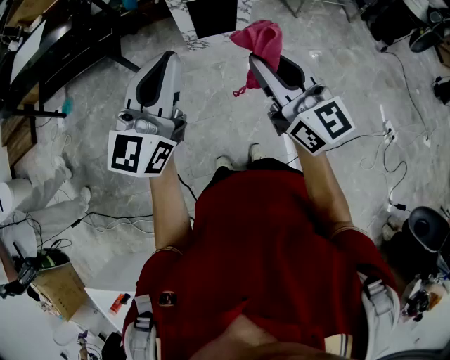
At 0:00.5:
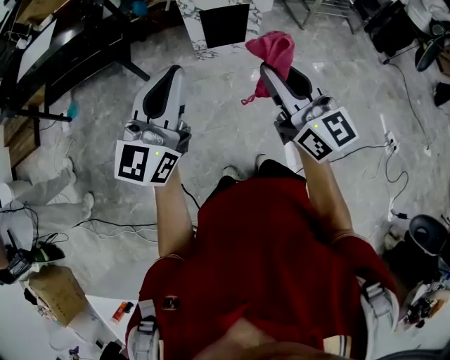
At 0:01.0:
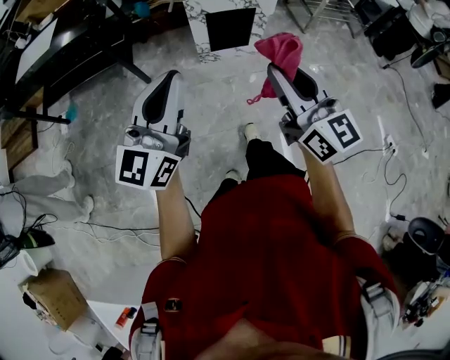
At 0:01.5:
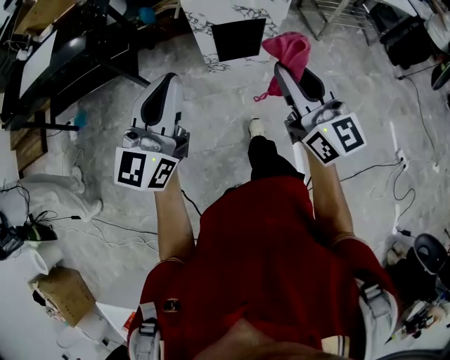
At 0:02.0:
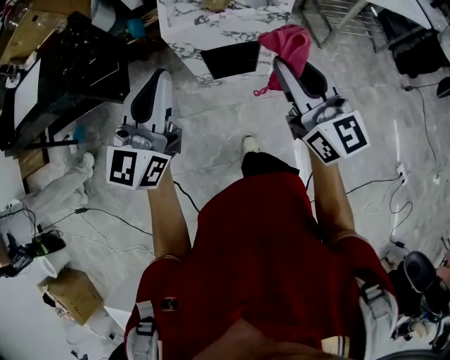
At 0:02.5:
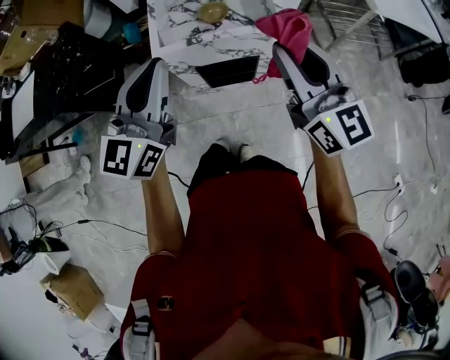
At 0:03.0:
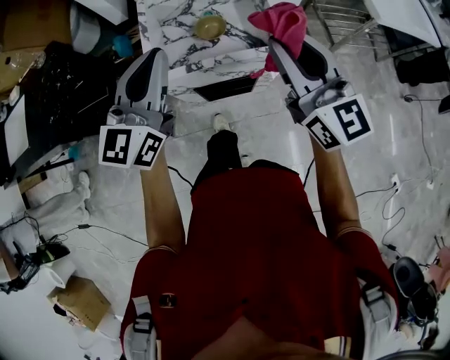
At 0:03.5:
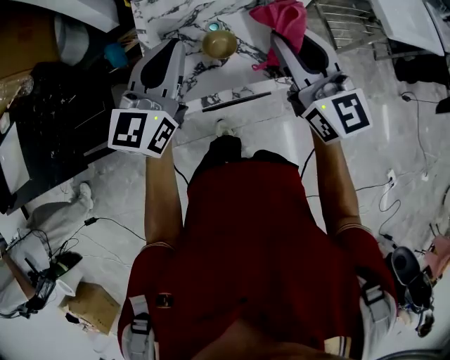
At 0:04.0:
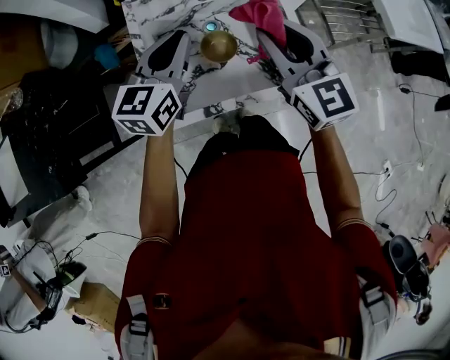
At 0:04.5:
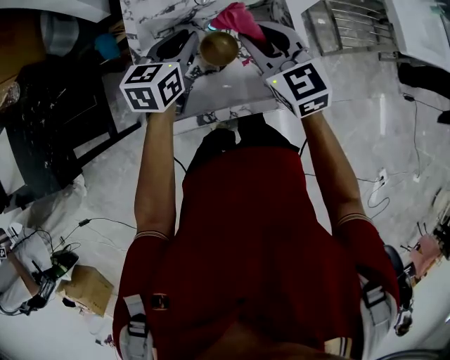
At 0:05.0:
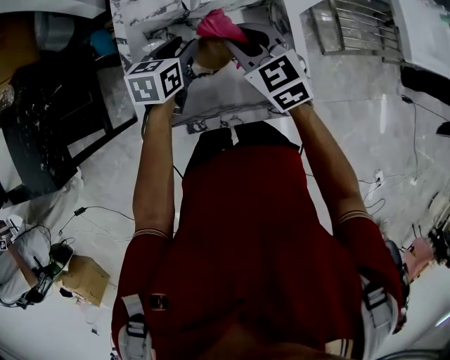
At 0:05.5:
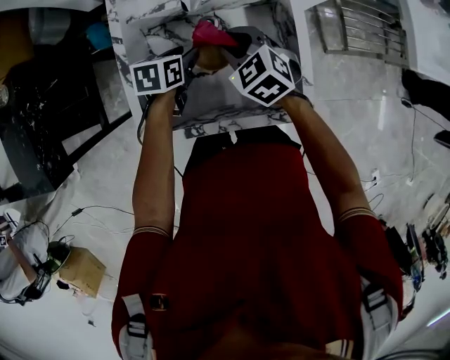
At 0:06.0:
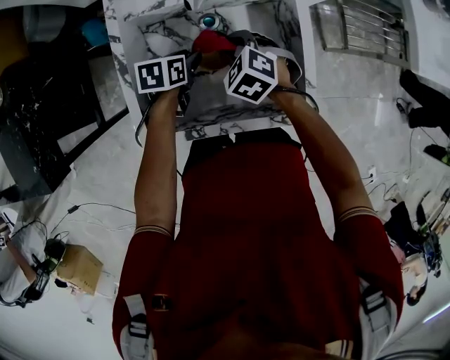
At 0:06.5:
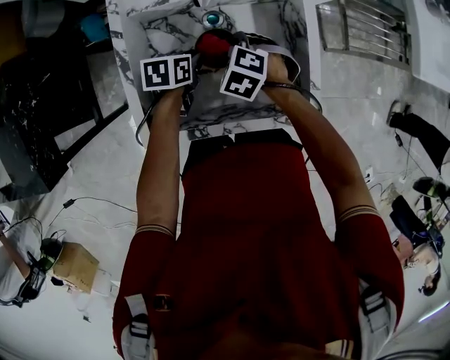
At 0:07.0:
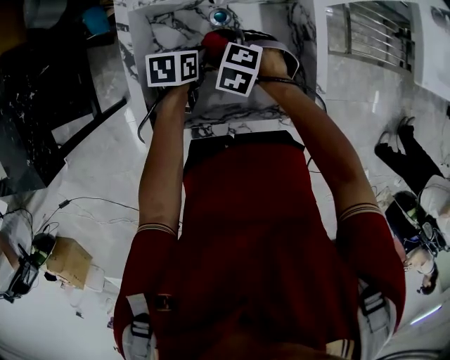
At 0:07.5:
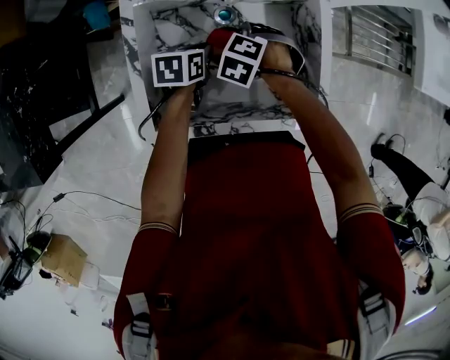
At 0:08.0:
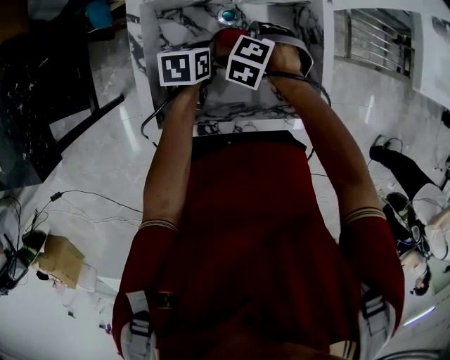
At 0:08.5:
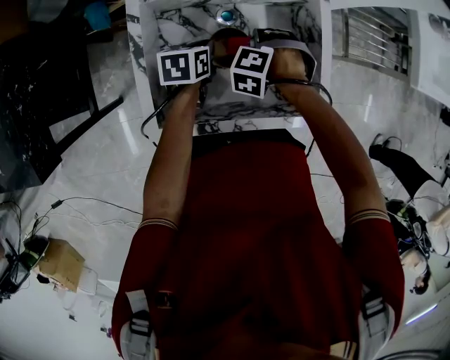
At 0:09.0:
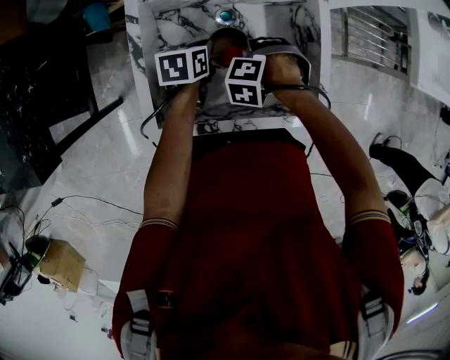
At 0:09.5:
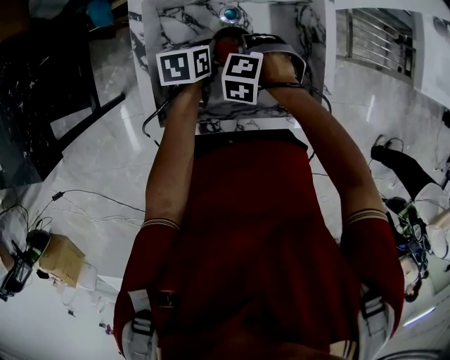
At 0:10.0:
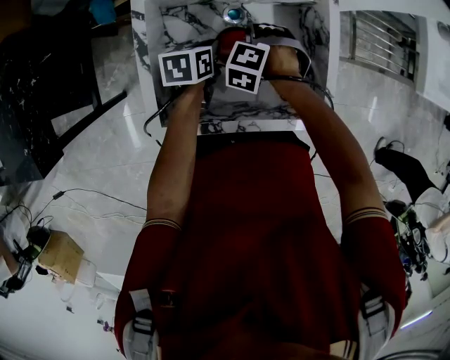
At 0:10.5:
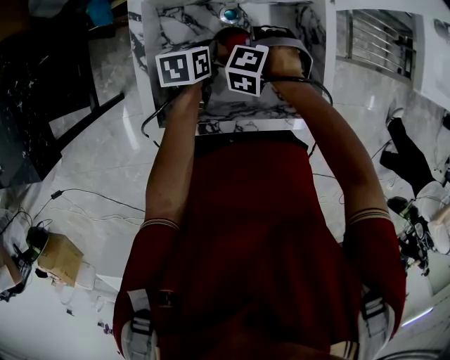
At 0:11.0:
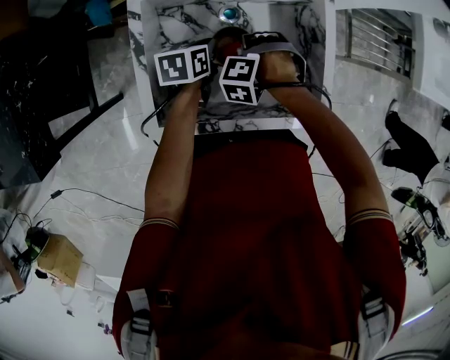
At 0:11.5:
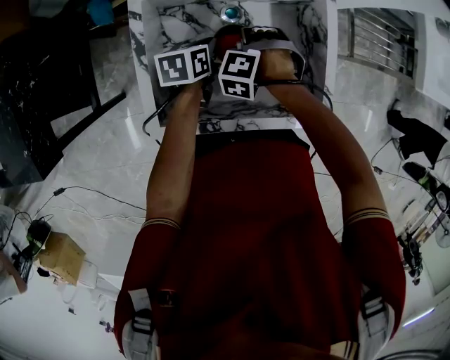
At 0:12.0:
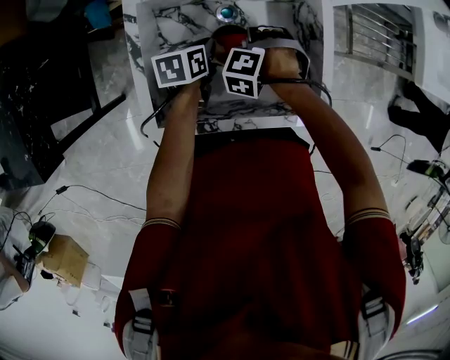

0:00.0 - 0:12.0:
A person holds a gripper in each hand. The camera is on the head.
0:00.0 - 0:02.0: The grippers both shift forward by roughly 35 cm.
0:02.0 - 0:04.0: The two grippers travel together, forward, some 50 cm. The right gripper turns by about 20 degrees. The left gripper swivels about 20 degrees.
0:04.0 - 0:06.0: The grippers both shift downward by about 25 cm. The right gripper angles its fingers downward, by roughly 50 degrees; the left gripper angles its fingers downward, by about 40 degrees, and opens its fingers.
0:06.0 - 0:08.0: The right gripper turns by approximately 30 degrees. The left gripper closes its fingers.
0:10.0 - 0:12.0: The grippers stay close to where they were, moving slightly.

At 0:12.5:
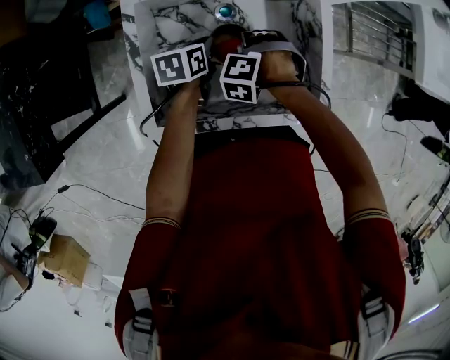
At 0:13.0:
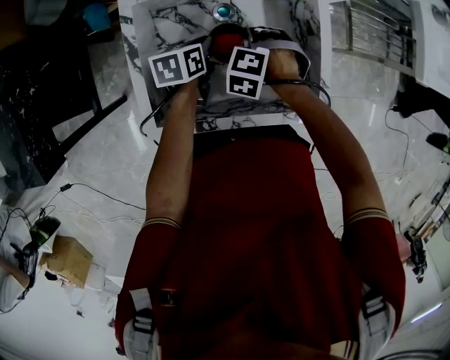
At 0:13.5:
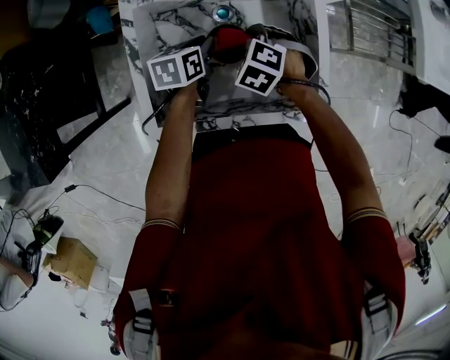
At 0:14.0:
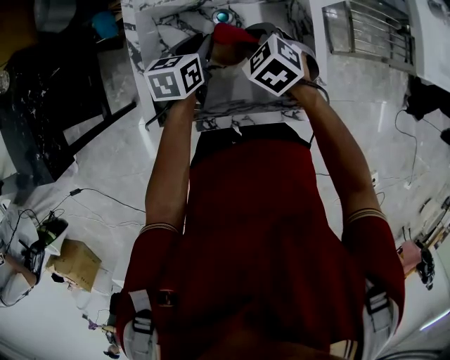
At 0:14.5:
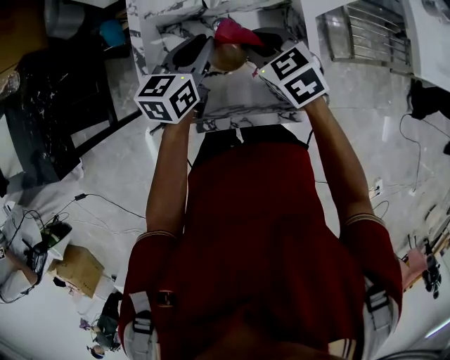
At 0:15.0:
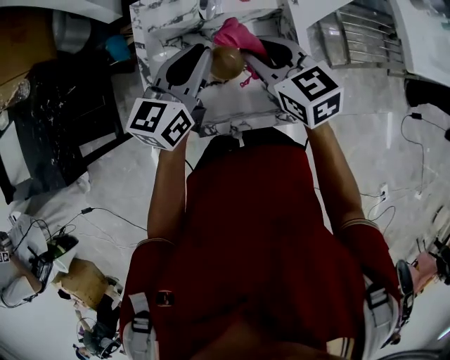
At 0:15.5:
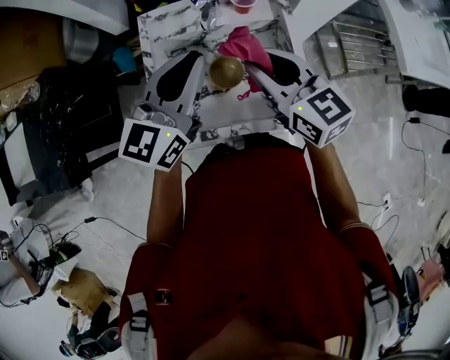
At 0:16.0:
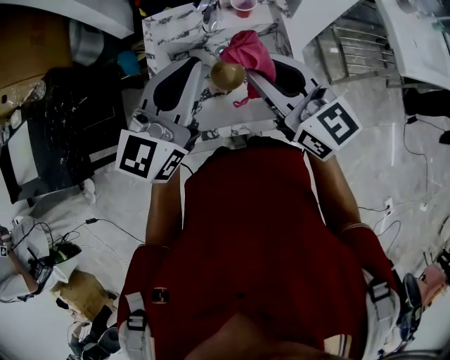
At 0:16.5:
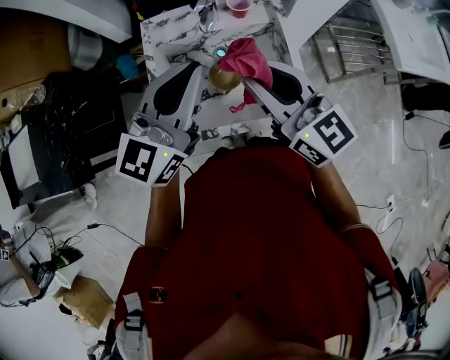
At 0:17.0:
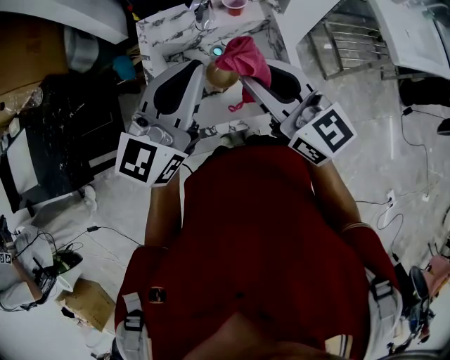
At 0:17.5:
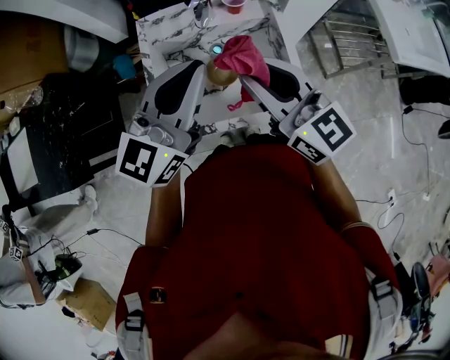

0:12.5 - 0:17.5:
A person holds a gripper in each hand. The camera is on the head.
0:12.5 - 0:15.0: Both grippers move upward, approximately 25 cm. The left gripper points its fingers about 40 degrees further upward, while the right gripper tilts its fingers about 50 degrees upward.
0:15.0 - 0:17.5: Both grippers move upward and backward, some 15 cm. The right gripper swivels roughly 30 degrees, while the left gripper rotates roughly 20 degrees.

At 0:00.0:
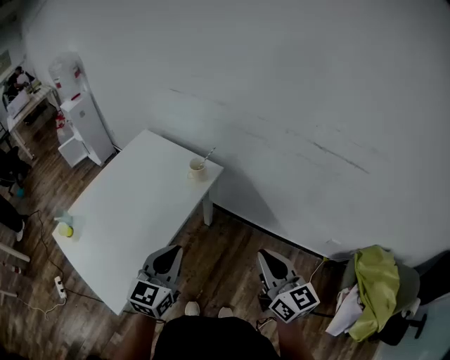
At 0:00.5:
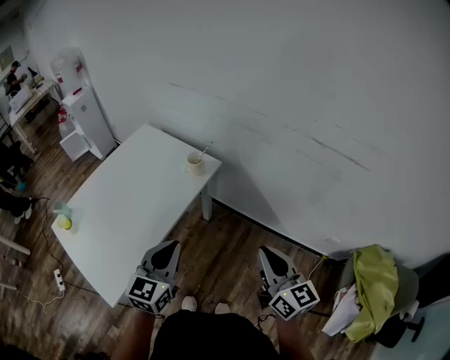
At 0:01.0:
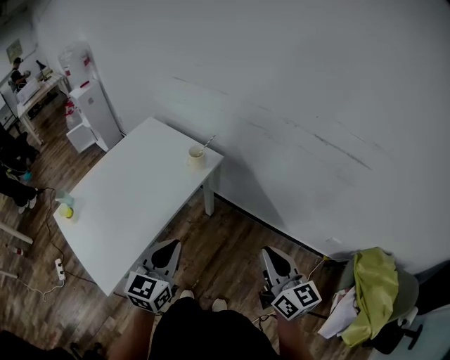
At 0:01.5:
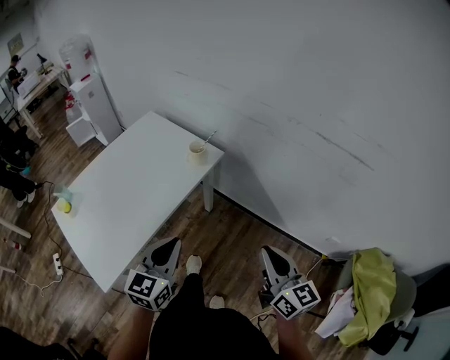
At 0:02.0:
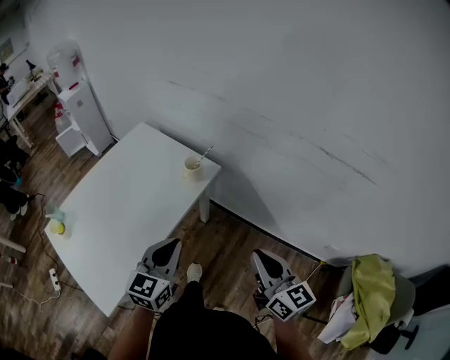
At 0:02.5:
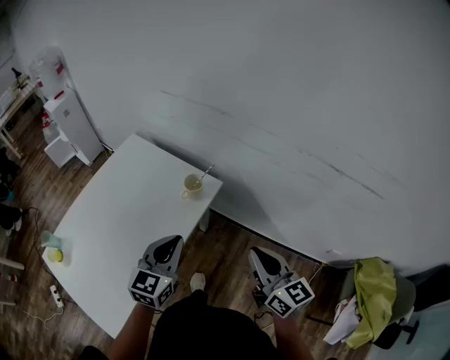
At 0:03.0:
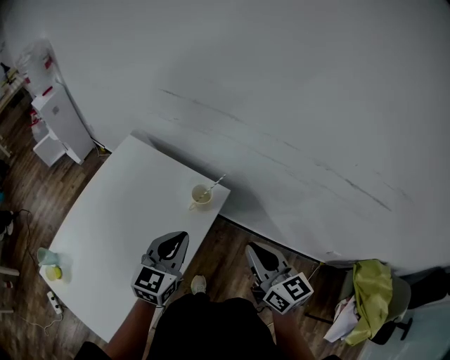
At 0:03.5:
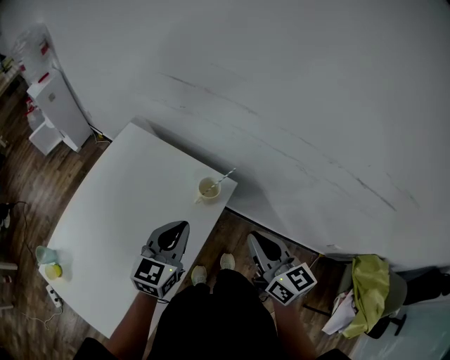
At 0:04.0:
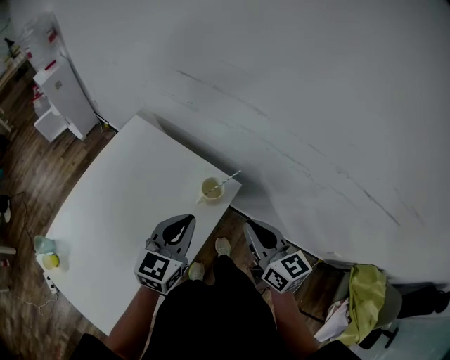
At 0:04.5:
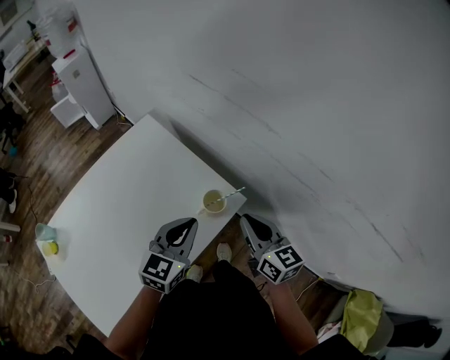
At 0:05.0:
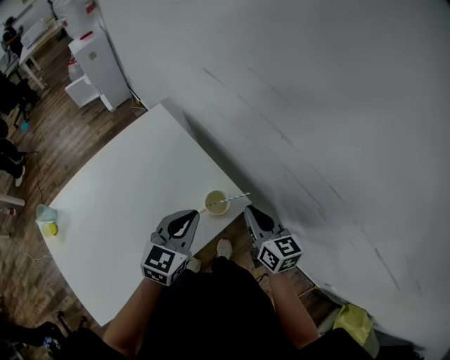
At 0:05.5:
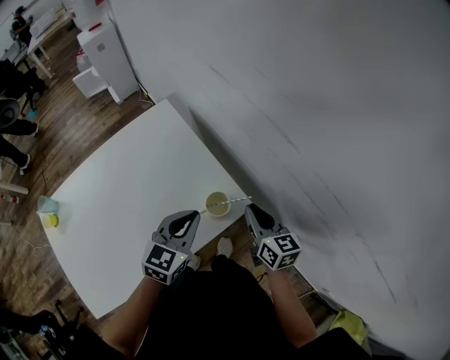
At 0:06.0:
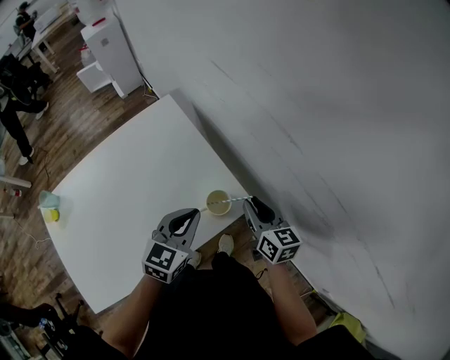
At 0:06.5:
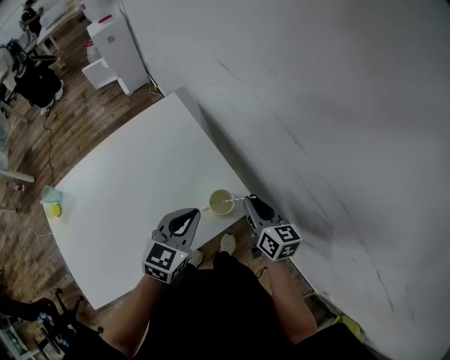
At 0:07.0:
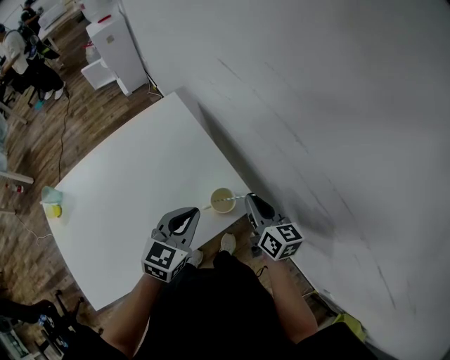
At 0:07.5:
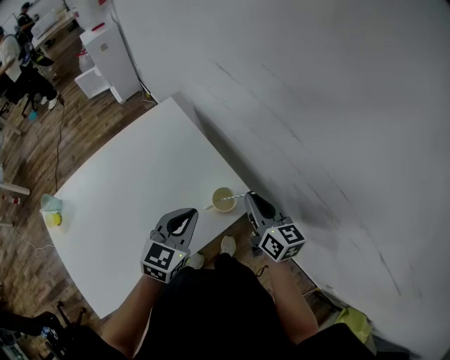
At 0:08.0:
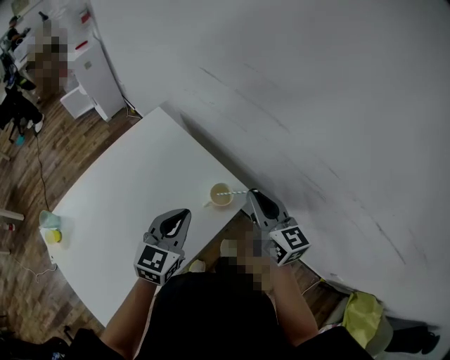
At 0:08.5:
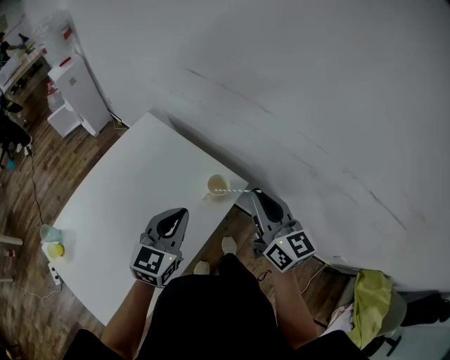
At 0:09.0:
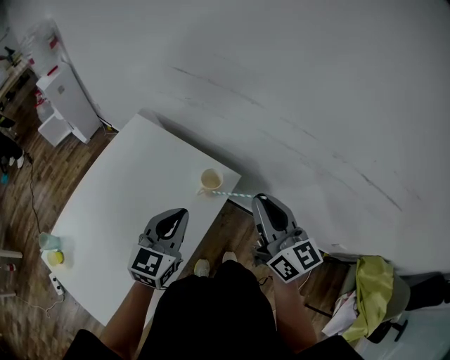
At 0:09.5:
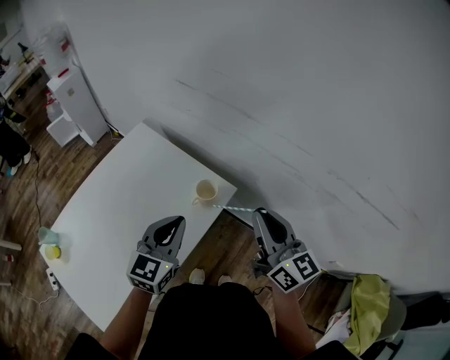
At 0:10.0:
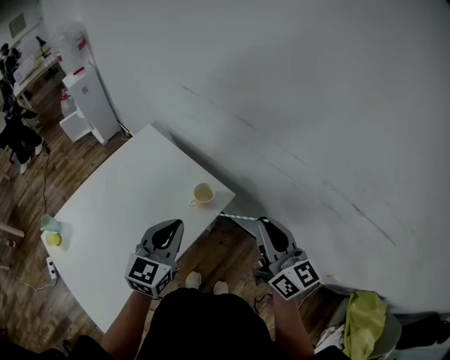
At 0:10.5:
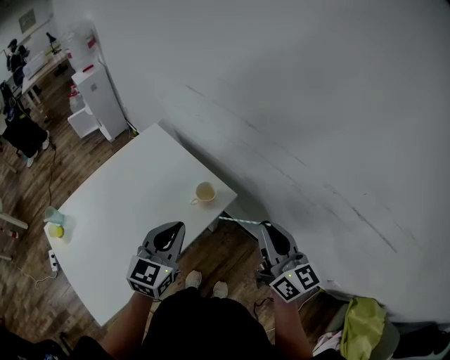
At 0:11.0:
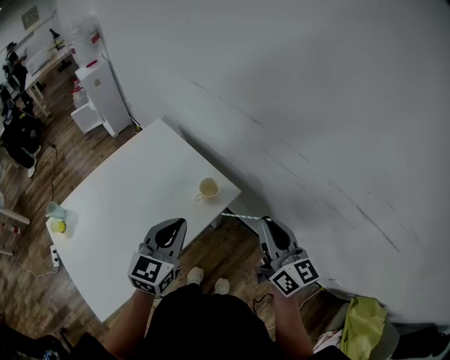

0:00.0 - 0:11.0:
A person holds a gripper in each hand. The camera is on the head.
0:00.0 - 0:02.0: Both grippers travel together forward, about 5 cm.
0:02.0 - 0:03.5: The right gripper shifts about 25 cm forward and to the left. The left gripper is displaced forward by approximately 25 cm.
0:03.5 - 0:05.5: The left gripper moves forward and downward, roughly 10 cm; the right gripper is displaced forward and downward by roughly 25 cm, and rotates some 20 degrees.
0:05.5 - 0:07.5: The grippers make only small movements.
0:07.5 - 0:09.0: The left gripper goes some 10 cm backward and upward. Meanwhile the right gripper shifts about 20 cm backward and upward, and changes its angle by approximately 30 degrees.
0:09.0 - 0:11.0: The left gripper ends up approximately 5 cm from where it was. The right gripper travels to the right by roughly 10 cm.
